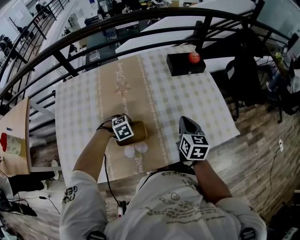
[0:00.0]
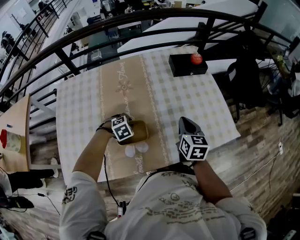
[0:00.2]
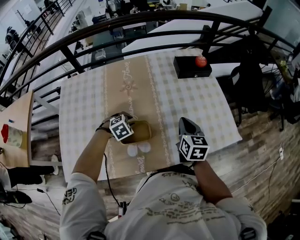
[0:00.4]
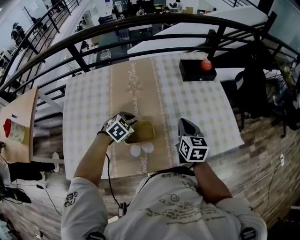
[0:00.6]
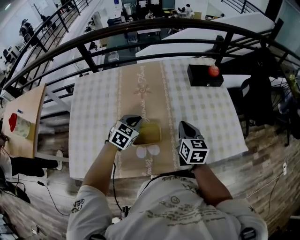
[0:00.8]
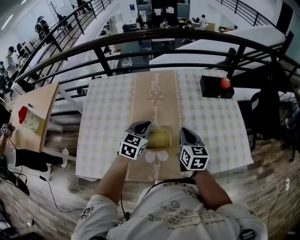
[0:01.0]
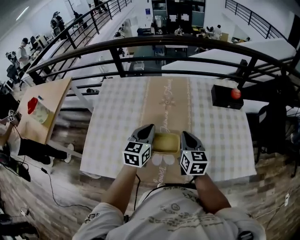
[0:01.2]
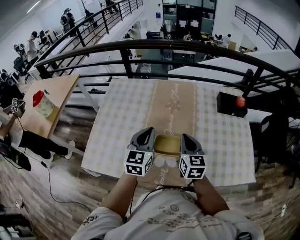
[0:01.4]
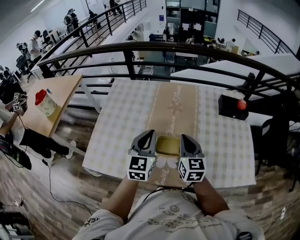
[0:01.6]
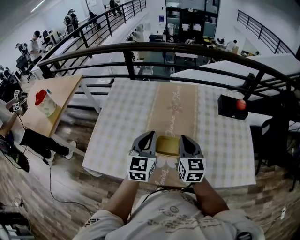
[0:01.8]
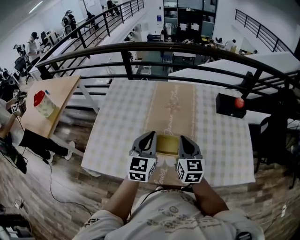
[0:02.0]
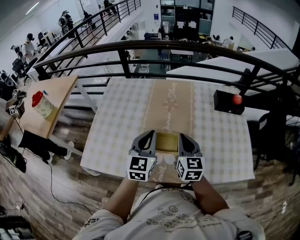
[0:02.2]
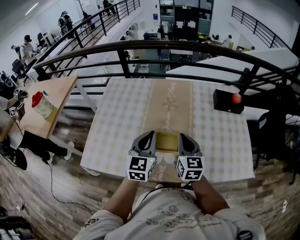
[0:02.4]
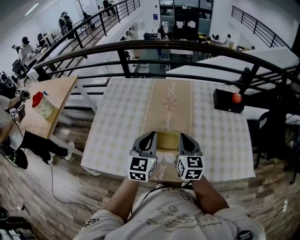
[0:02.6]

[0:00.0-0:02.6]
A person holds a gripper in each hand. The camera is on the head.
0:00.0 to 0:01.2: The right gripper moves about 20 cm, and swivels approximately 20 degrees. The left gripper moves upward, roughly 20 cm, and tips its fingers upward by some 60 degrees.
0:01.2 to 0:02.6: The left gripper shifts about 10 cm backward.

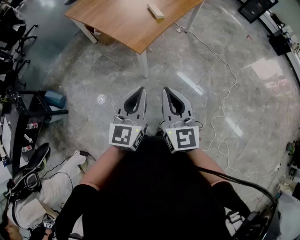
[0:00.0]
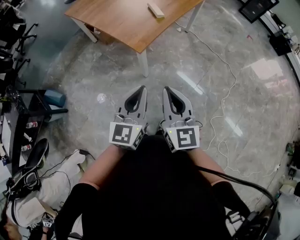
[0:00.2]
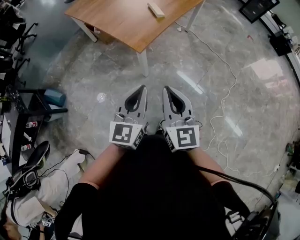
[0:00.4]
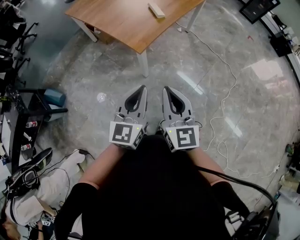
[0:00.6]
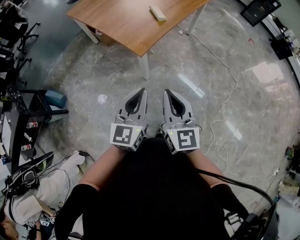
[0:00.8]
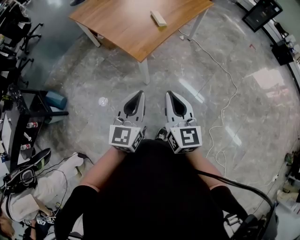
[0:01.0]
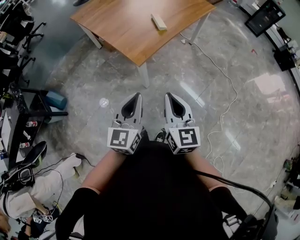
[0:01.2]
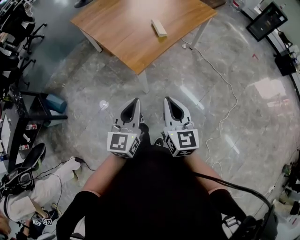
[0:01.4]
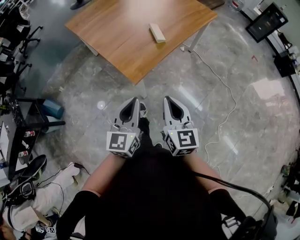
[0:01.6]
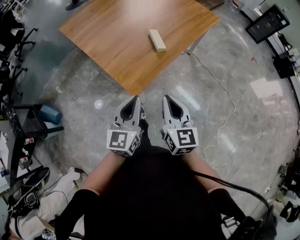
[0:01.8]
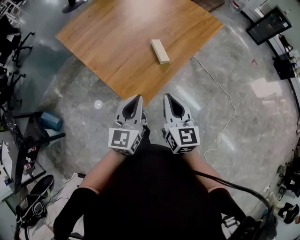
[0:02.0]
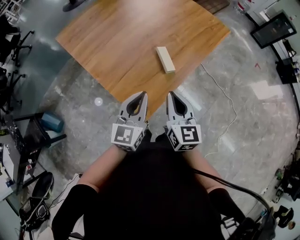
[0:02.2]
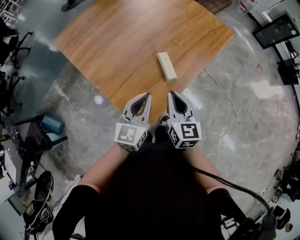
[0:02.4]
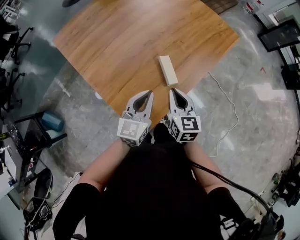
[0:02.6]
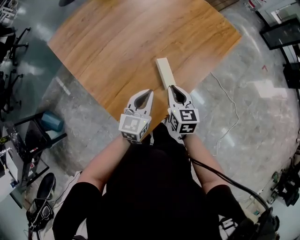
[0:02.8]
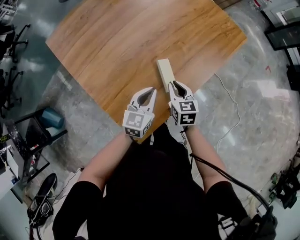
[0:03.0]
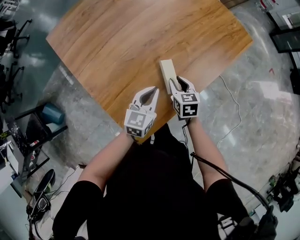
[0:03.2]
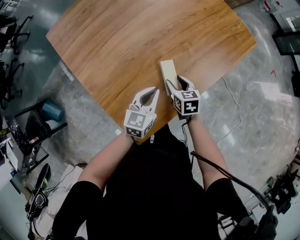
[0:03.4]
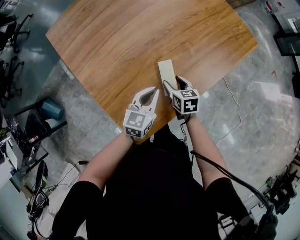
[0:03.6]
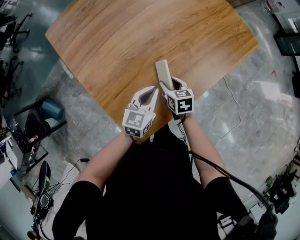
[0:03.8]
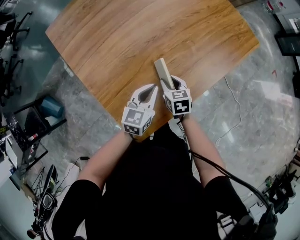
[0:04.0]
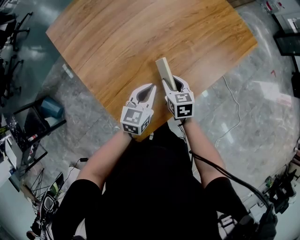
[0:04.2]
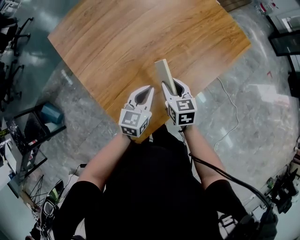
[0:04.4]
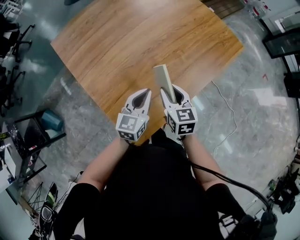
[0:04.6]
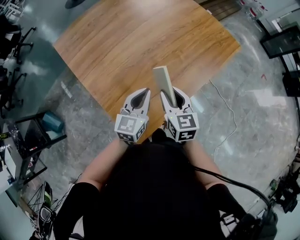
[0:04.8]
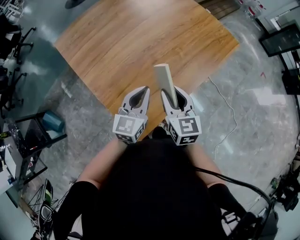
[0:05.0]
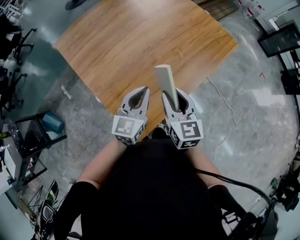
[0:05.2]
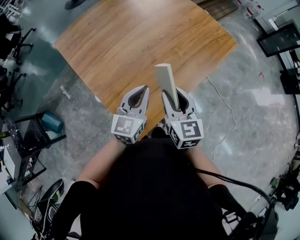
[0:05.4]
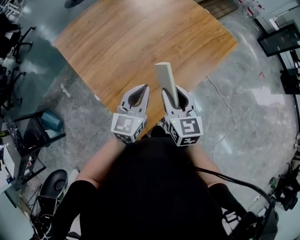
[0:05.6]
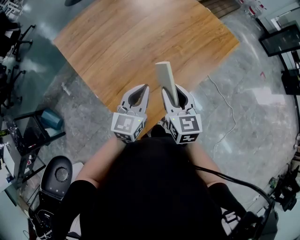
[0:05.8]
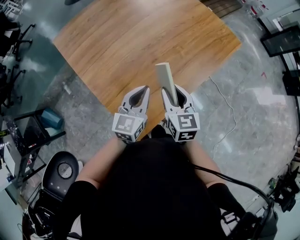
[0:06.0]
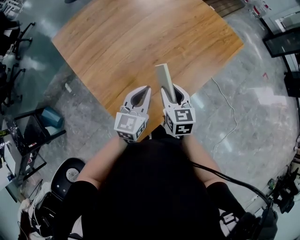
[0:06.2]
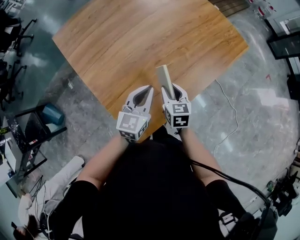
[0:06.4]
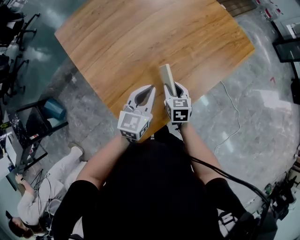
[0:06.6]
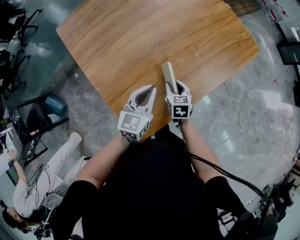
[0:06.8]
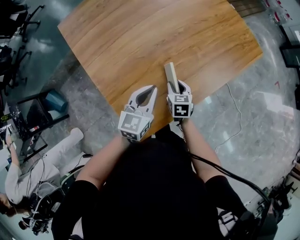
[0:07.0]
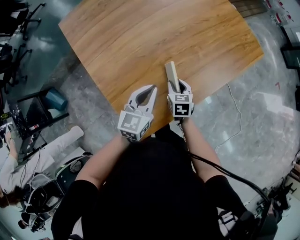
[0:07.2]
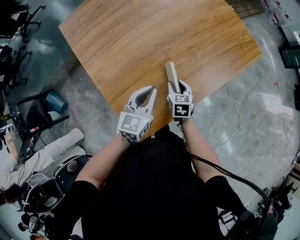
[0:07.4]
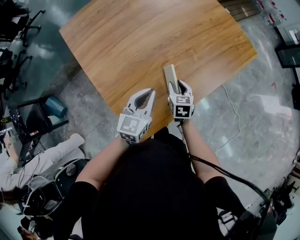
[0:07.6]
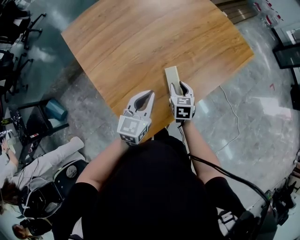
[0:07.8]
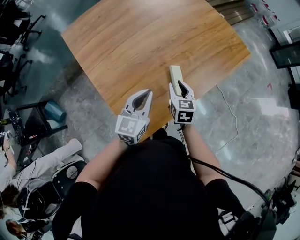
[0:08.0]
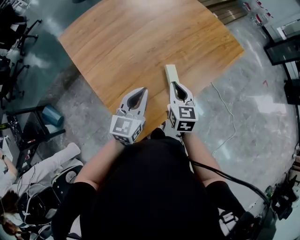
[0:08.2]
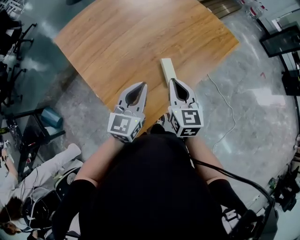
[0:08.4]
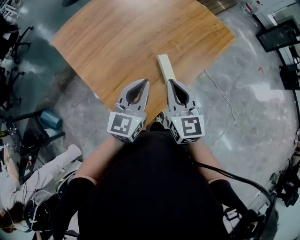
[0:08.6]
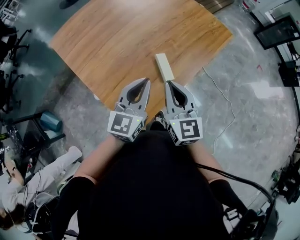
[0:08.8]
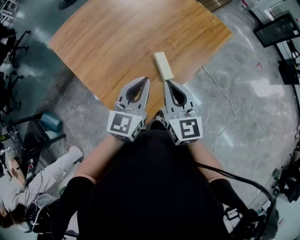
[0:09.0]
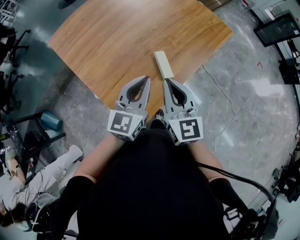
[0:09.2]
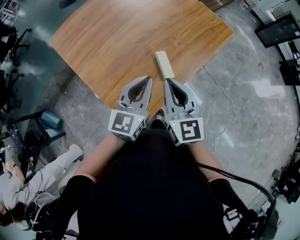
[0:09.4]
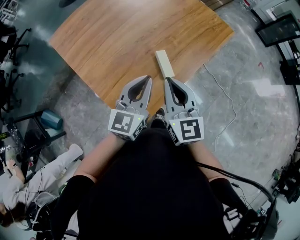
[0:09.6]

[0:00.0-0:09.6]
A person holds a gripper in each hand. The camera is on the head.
0:00.0 to 0:01.6: The two grippers go roughly 20 cm forward.
0:01.6 to 0:03.2: The pair of grippers is taken forward, about 50 cm. The right gripper goes some 25 cm downward, and tips its fingers downward by roughly 30 degrees.
0:03.2 to 0:04.8: The left gripper moves upward, about 10 cm. The right gripper shifts approximately 15 cm upward.
0:04.8 to 0:06.4: The right gripper heads downward, covering roughly 10 cm.
0:06.4 to 0:08.0: The right gripper reaches about 10 cm downward, then returns.
0:08.0 to 0:09.6: The right gripper goes about 25 cm upward and backward, turns by about 30 degrees, and closes. The left gripper moves upward, some 10 cm.

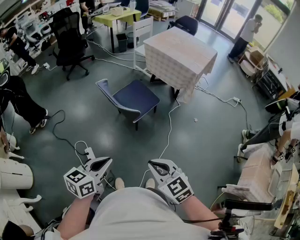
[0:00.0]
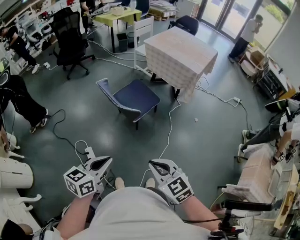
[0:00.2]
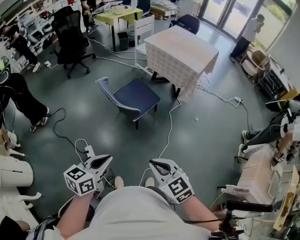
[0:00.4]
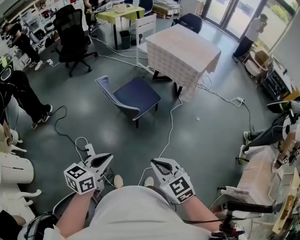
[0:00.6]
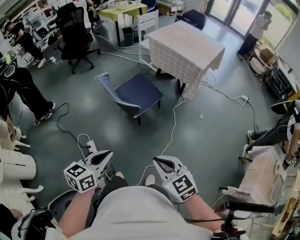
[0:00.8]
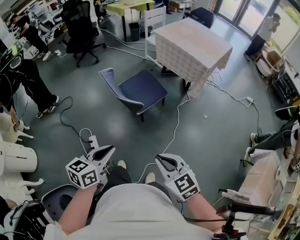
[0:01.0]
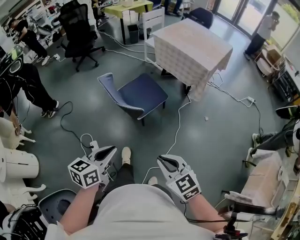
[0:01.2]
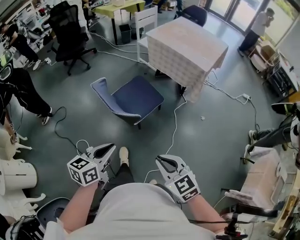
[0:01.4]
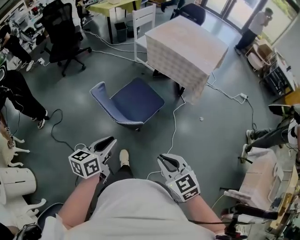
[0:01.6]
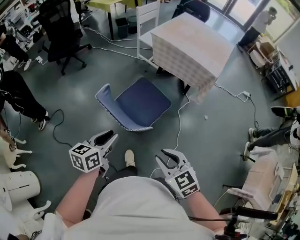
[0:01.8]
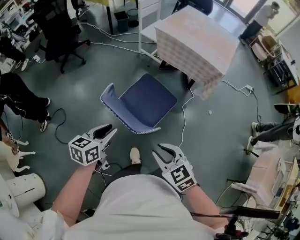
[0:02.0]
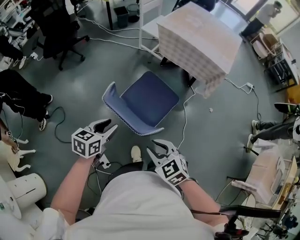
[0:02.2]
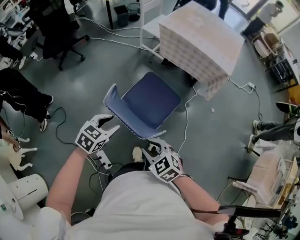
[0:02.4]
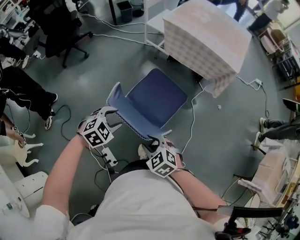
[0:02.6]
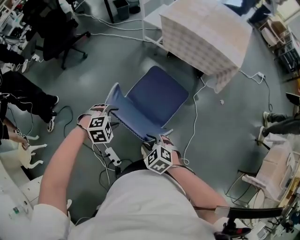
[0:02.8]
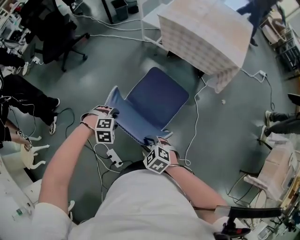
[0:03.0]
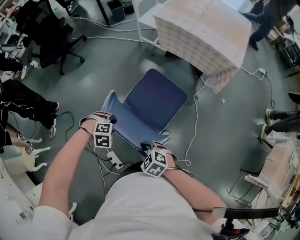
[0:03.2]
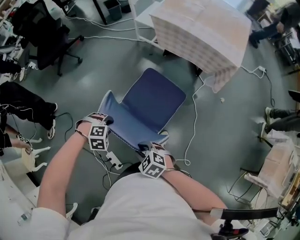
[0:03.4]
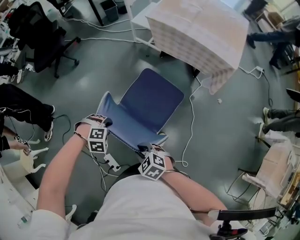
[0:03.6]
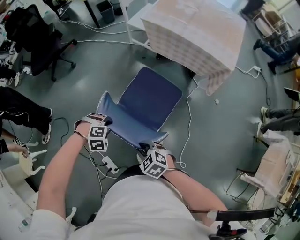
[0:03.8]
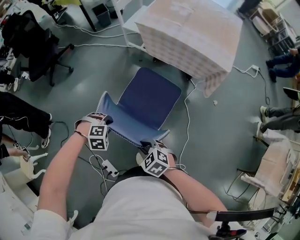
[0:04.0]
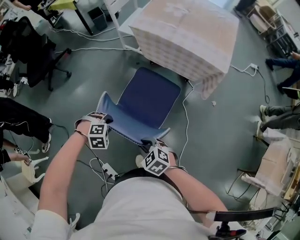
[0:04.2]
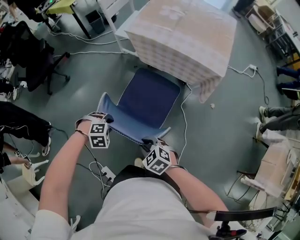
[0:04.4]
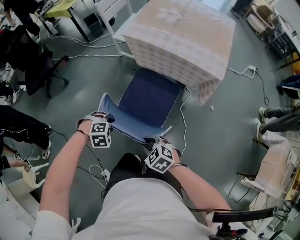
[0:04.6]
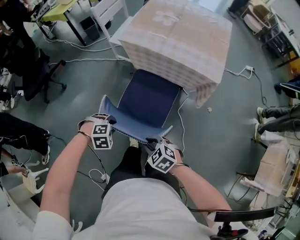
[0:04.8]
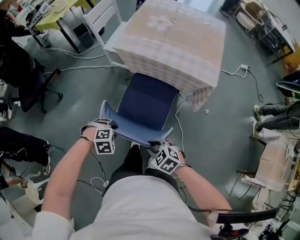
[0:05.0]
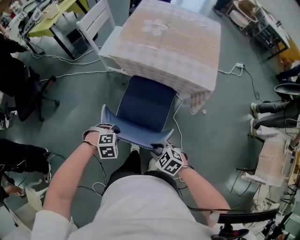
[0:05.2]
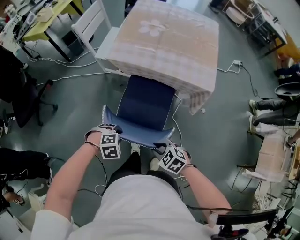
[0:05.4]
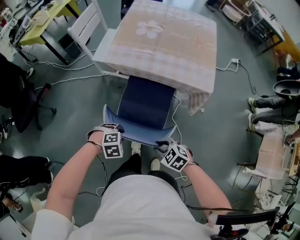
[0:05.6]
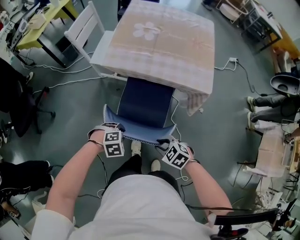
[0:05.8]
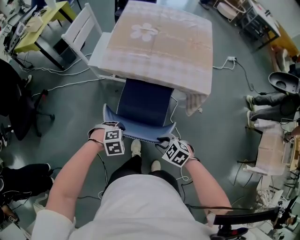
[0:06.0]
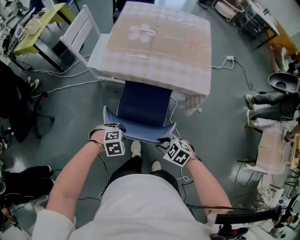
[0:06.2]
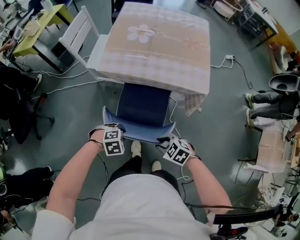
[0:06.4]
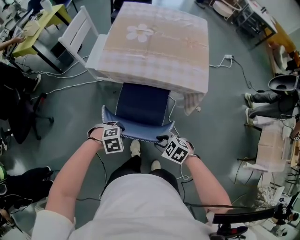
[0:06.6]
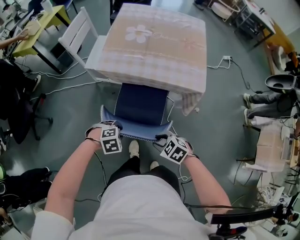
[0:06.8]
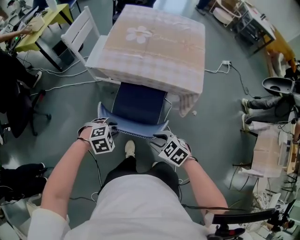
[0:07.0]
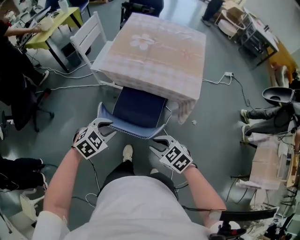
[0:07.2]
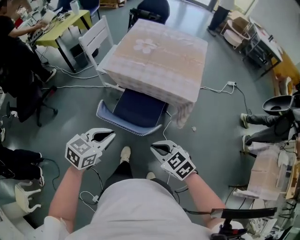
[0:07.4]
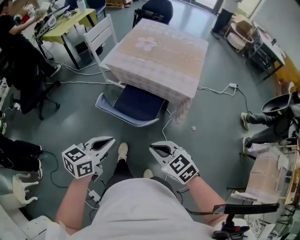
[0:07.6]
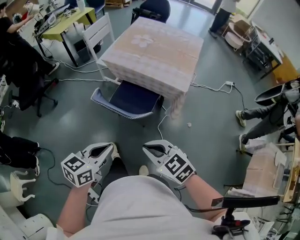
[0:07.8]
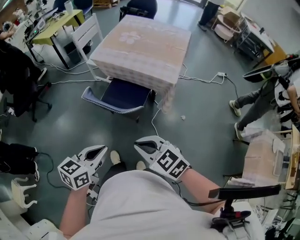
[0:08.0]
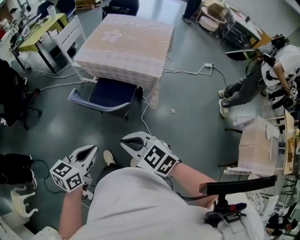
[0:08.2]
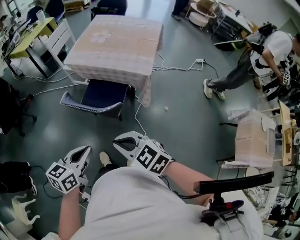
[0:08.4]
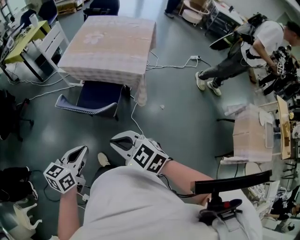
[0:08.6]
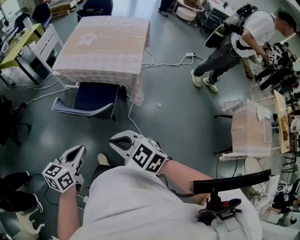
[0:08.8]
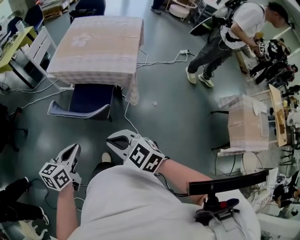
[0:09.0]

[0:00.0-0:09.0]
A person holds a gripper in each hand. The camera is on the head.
0:00.0 to 0:01.6: The grippers both shift forward by some 20 cm.
0:01.6 to 0:03.0: The right gripper changes place by roughly 35 cm, turns by roughly 30 degrees, and opens its fingers. Meanwhile the left gripper shifts by about 35 cm, angles its fingers downward, by about 60 degrees, and opens.
0:03.0 to 0:04.4: The right gripper ends up some 20 cm from where it was; the left gripper ends up about 20 cm from where it was, and closes its fingers.
0:04.4 to 0:06.0: The left gripper moves approximately 20 cm. The right gripper moves approximately 20 cm.
0:06.0 to 0:07.6: Both grippers travel together upward, some 20 cm. The left gripper tips its fingers upward by roughly 50 degrees, and closes its fingers; the right gripper swivels about 20 degrees, and closes its fingers.
0:07.6 to 0:09.0: Both grippers move backward, some 5 cm.

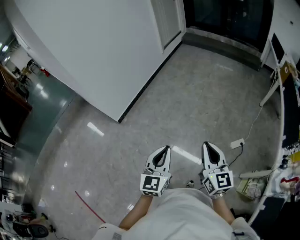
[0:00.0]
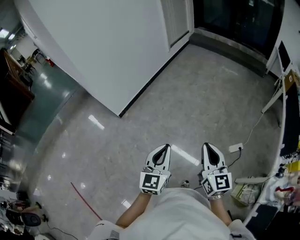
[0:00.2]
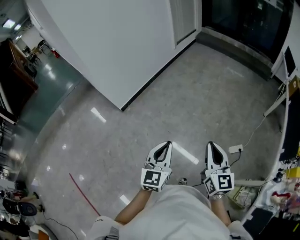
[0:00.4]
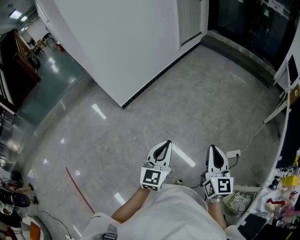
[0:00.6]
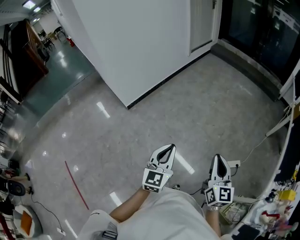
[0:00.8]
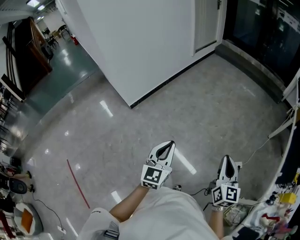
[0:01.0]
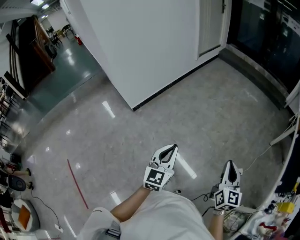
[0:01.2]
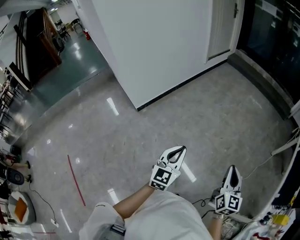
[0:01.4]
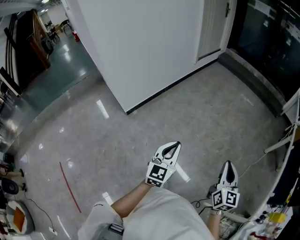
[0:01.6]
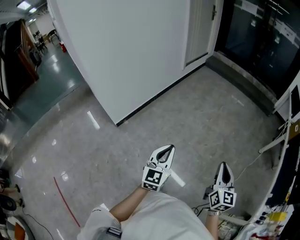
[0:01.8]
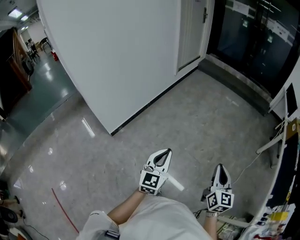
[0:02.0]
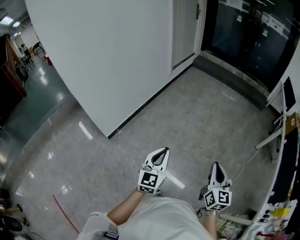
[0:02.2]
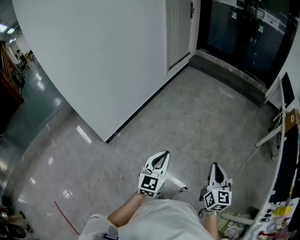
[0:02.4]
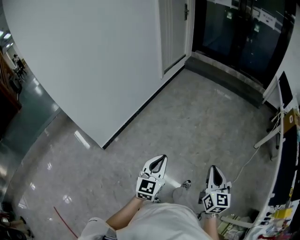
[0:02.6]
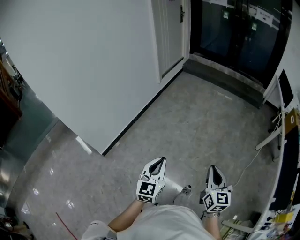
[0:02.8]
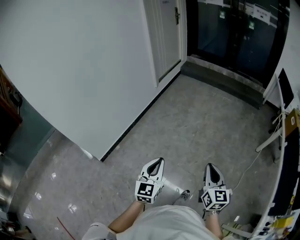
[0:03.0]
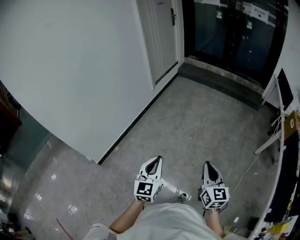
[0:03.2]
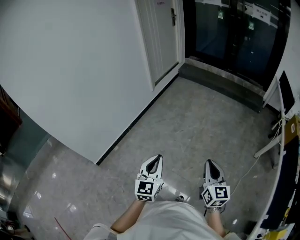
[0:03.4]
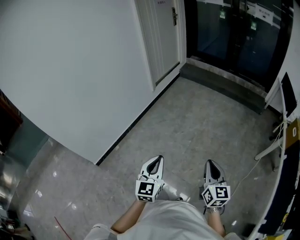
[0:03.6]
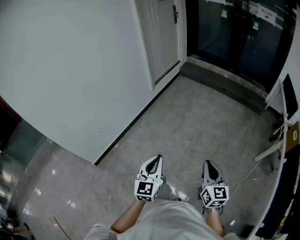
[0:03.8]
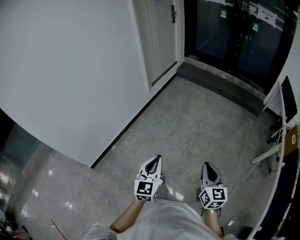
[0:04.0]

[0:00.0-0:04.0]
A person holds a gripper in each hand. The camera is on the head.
0:00.0 to 0:01.4: The right gripper goes about 10 cm to the right and forward. The left gripper is displaced forward by some 5 cm.
0:01.4 to 0:02.6: The two grippers go about 25 cm forward.
0:02.6 to 0:04.0: The left gripper goes approximately 35 cm forward and to the right. The right gripper goes some 30 cm forward.
